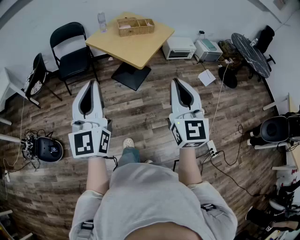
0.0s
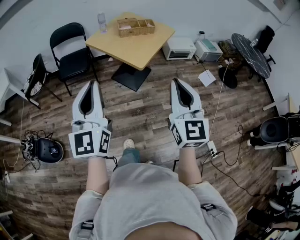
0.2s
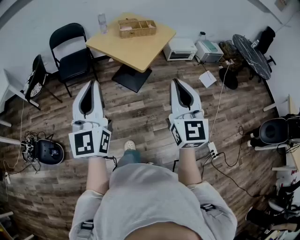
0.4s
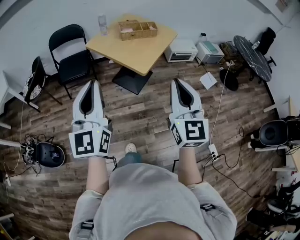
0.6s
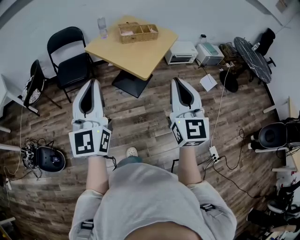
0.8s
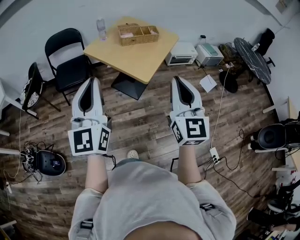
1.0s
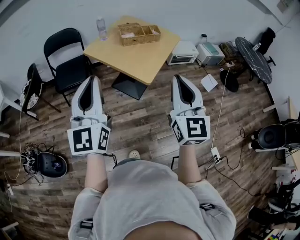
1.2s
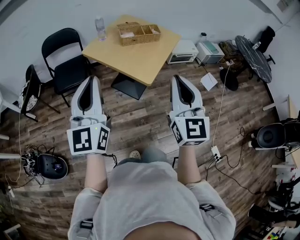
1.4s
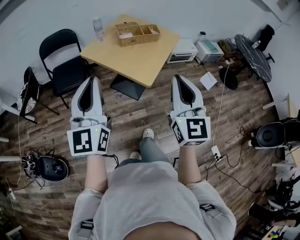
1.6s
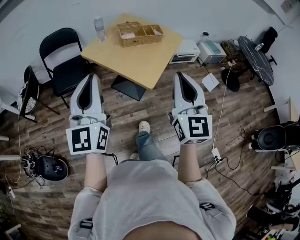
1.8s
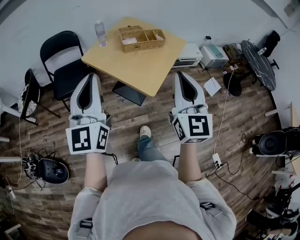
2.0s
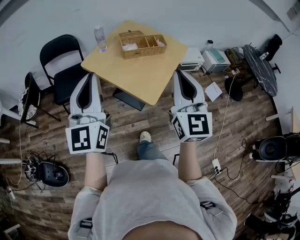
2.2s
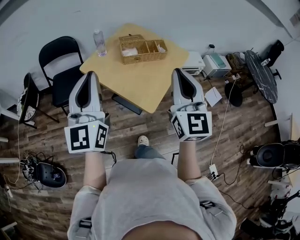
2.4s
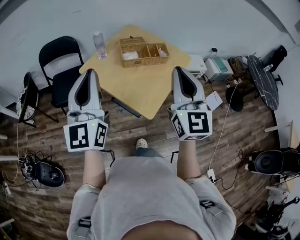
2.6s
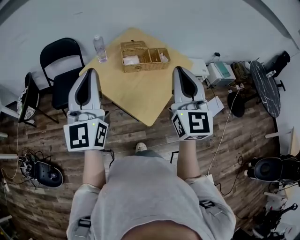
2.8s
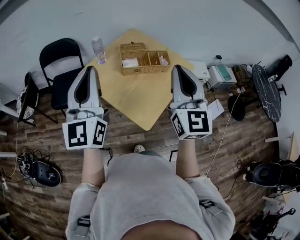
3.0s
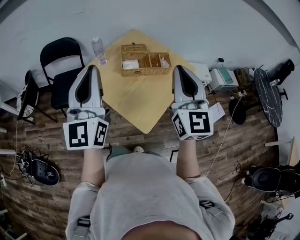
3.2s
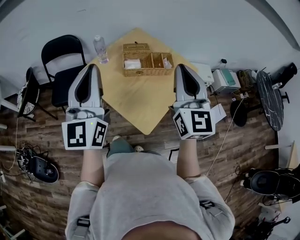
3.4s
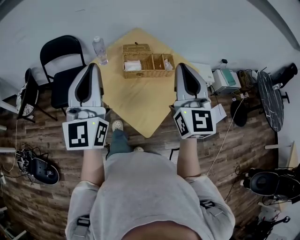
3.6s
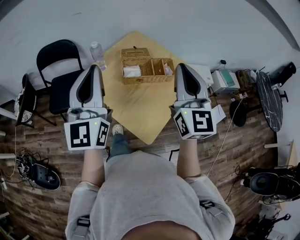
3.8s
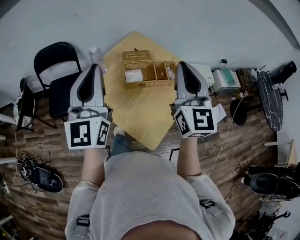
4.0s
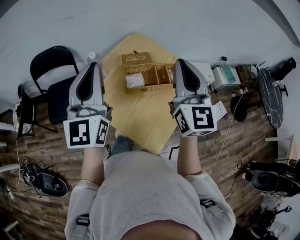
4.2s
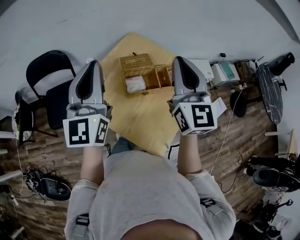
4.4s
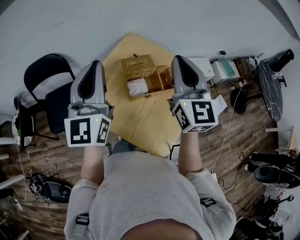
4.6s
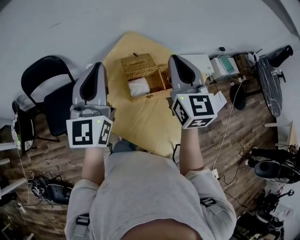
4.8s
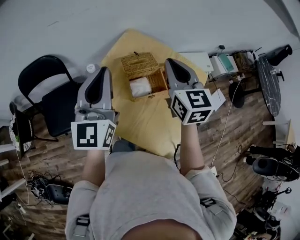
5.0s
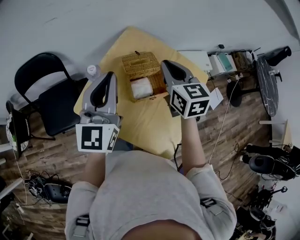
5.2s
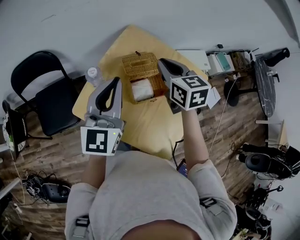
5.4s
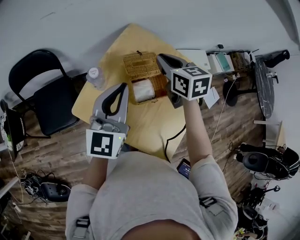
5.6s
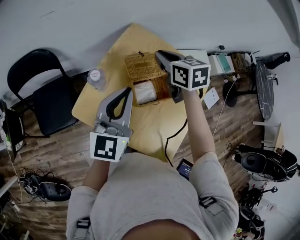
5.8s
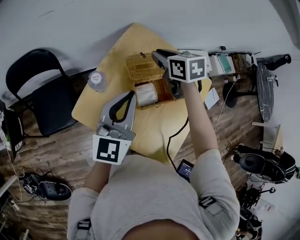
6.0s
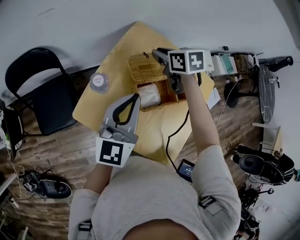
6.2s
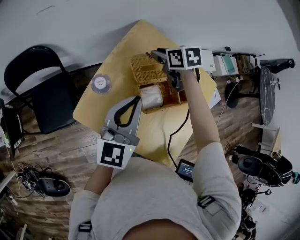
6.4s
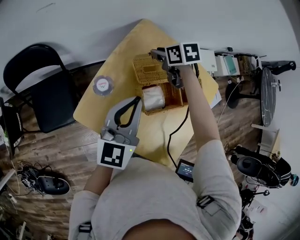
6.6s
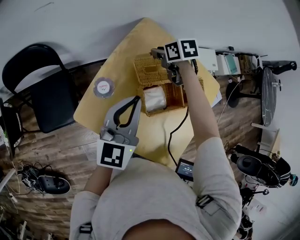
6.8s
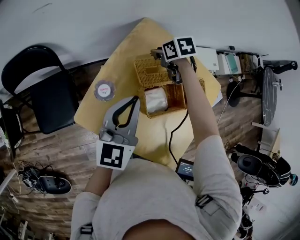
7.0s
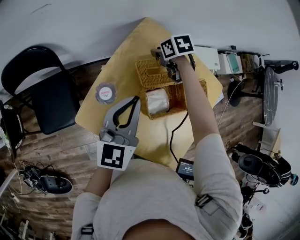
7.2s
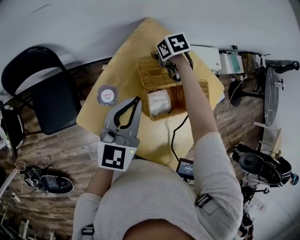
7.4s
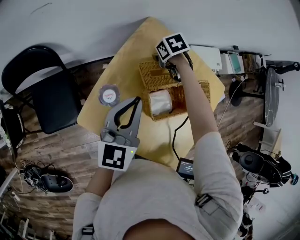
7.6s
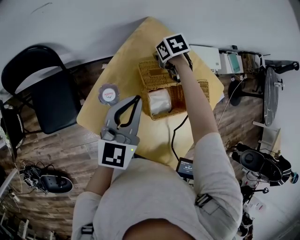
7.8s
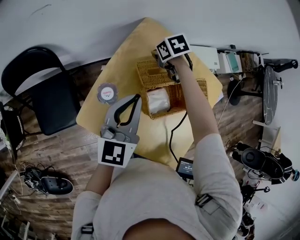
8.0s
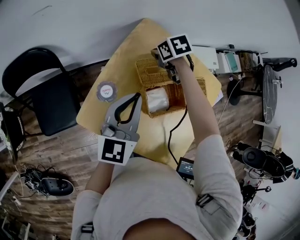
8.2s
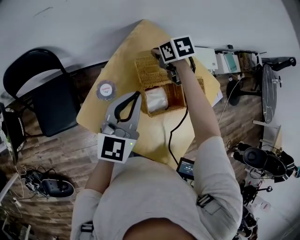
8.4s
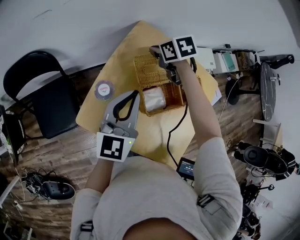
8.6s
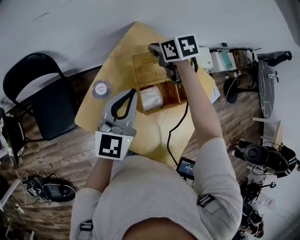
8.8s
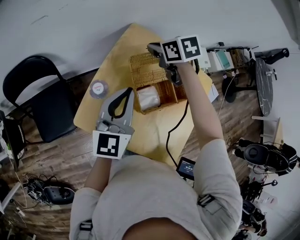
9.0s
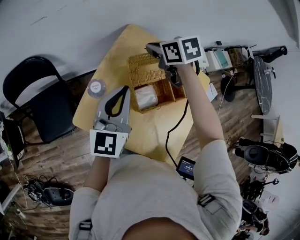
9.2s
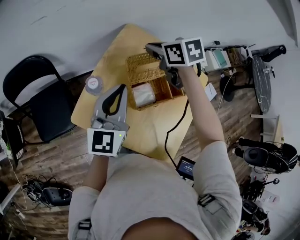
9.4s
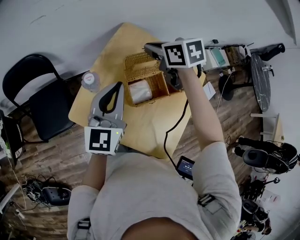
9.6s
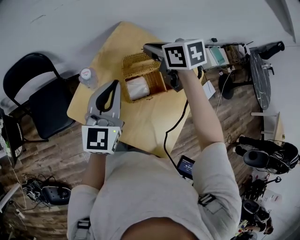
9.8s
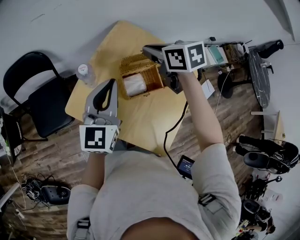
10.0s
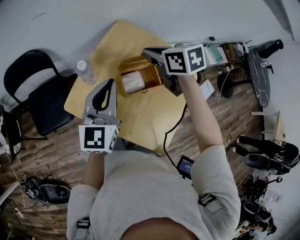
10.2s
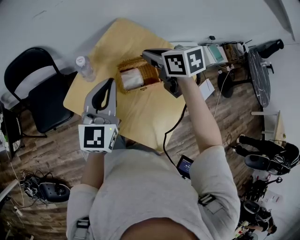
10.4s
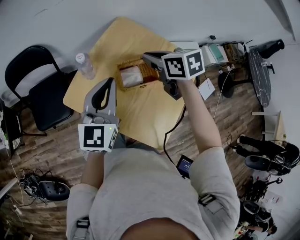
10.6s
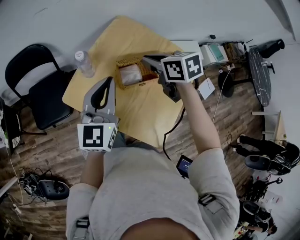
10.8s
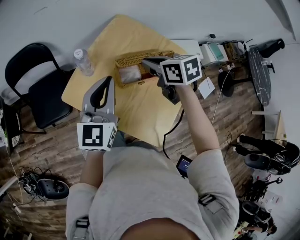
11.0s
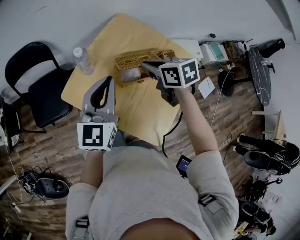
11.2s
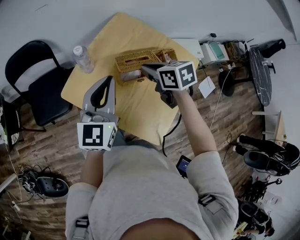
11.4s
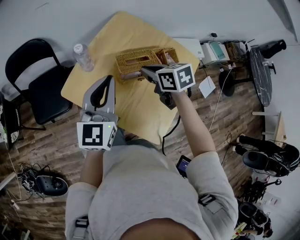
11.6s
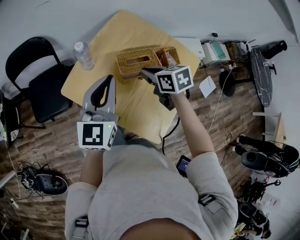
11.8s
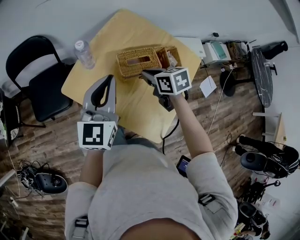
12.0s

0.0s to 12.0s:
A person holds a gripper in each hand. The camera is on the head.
0.0s to 1.6s: The grippers both shift forward by some 20 cm.
1.6s to 3.0s: Both grippers move forward, roughly 30 cm.
3.0s to 4.4s: Both grippers travel together forward, approximately 25 cm.
4.4s to 6.0s: The left gripper travels downward and forward by roughly 15 cm, and turns by some 30 degrees; the right gripper goes some 30 cm forward and downward, and angles its fingers downward, by about 50 degrees.
6.0s to 7.6s: The right gripper travels downward by approximately 20 cm, and angles its fingers downward, by roughly 30 degrees, while the left gripper travels downward by some 5 cm.
7.6s to 9.0s: The right gripper goes approximately 15 cm upward, and changes its angle by roughly 30 degrees.
9.0s to 10.4s: The left gripper heads backward, covering approximately 10 cm. Meanwhile the right gripper moves backward, about 15 cm.
10.4s to 12.0s: The right gripper shifts approximately 15 cm downward and backward.

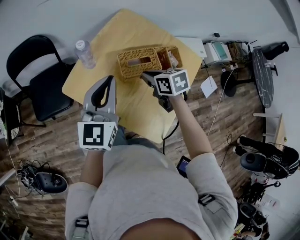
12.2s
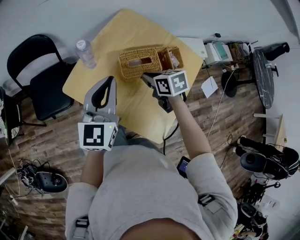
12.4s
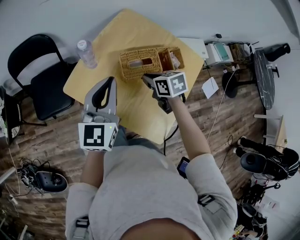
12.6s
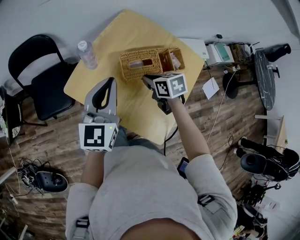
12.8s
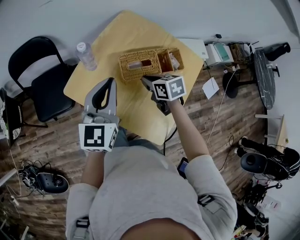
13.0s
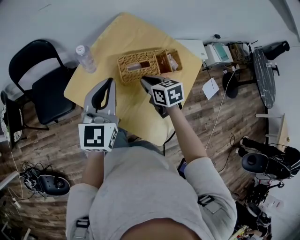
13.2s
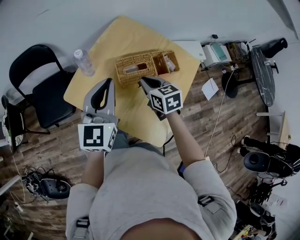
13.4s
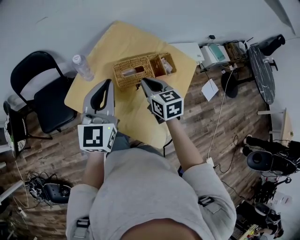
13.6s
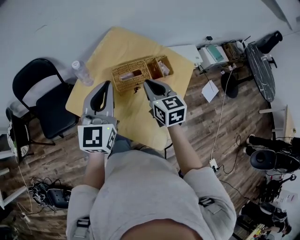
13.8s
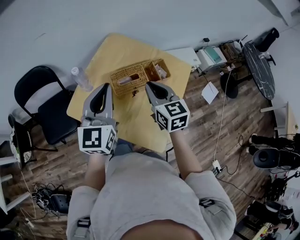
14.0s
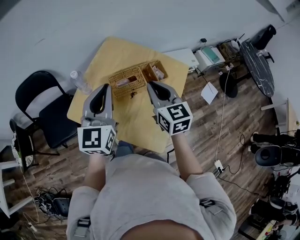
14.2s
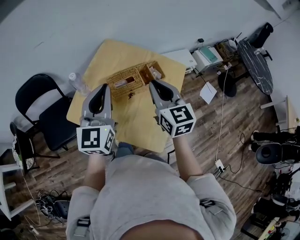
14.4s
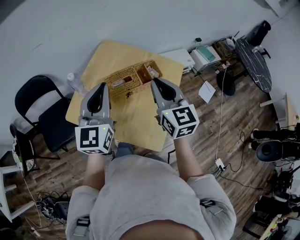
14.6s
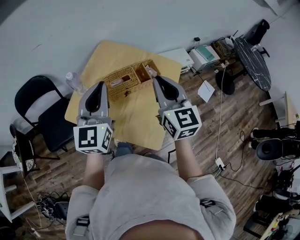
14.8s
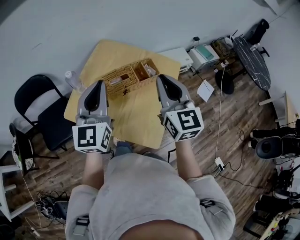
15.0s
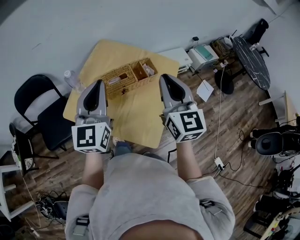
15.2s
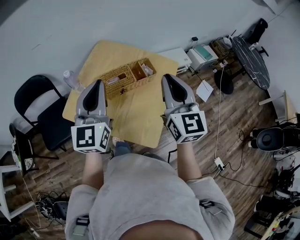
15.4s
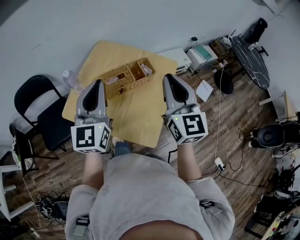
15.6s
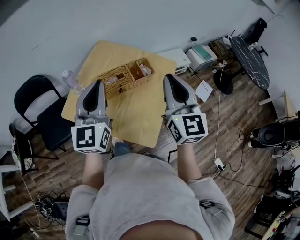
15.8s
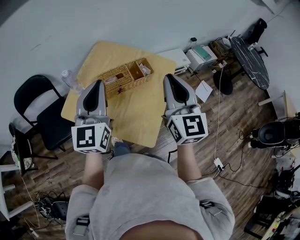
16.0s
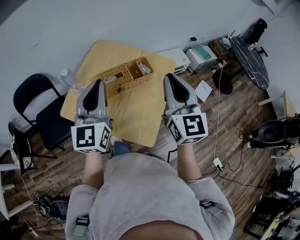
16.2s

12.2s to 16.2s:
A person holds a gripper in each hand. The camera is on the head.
12.2s to 13.6s: The right gripper is displaced upward by some 5 cm, and rotates about 20 degrees.
13.6s to 14.8s: The right gripper is displaced upward, to the right and backward by about 20 cm, and swivels roughly 30 degrees. The left gripper shifts roughly 5 cm upward.
14.8s to 16.2s: The right gripper heads to the right, covering roughly 5 cm.

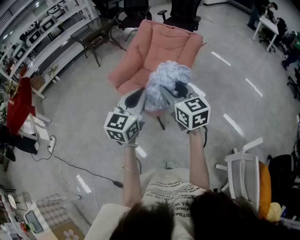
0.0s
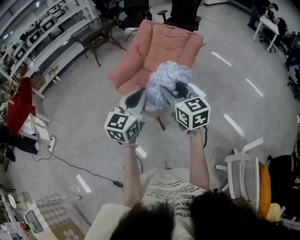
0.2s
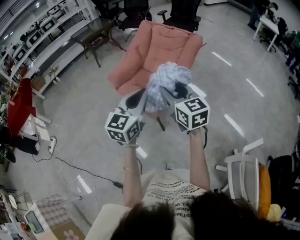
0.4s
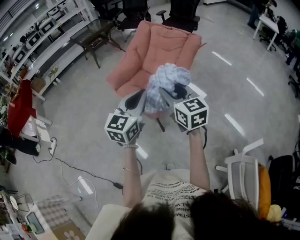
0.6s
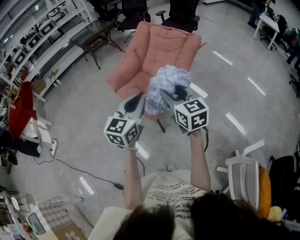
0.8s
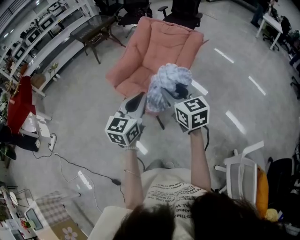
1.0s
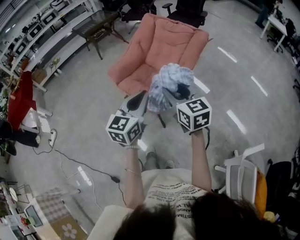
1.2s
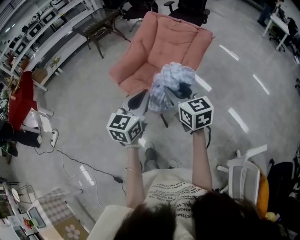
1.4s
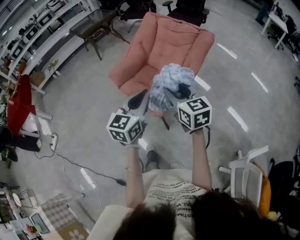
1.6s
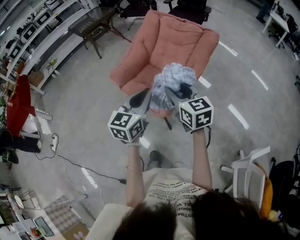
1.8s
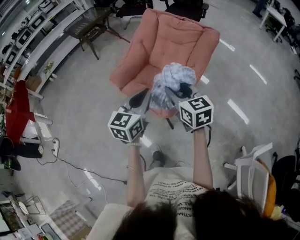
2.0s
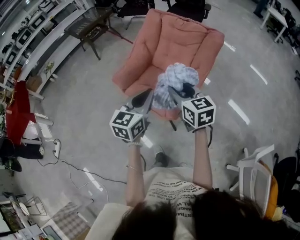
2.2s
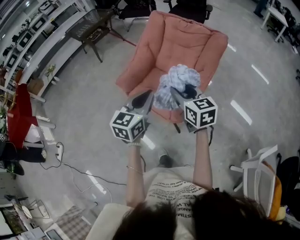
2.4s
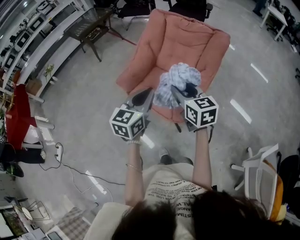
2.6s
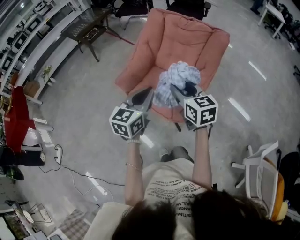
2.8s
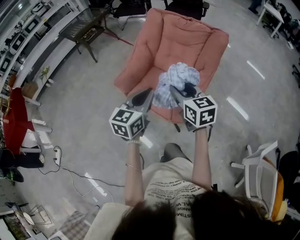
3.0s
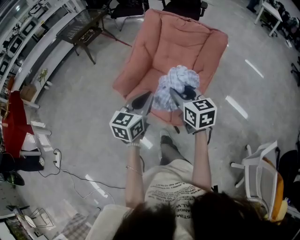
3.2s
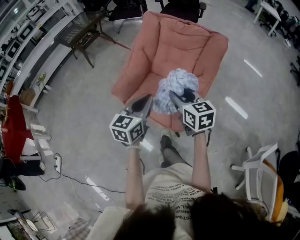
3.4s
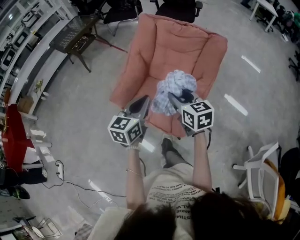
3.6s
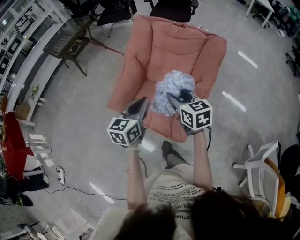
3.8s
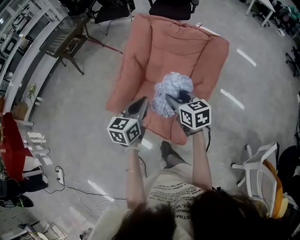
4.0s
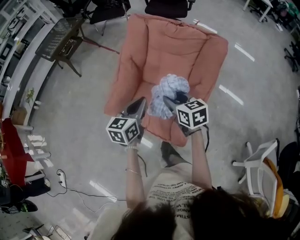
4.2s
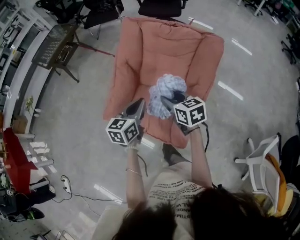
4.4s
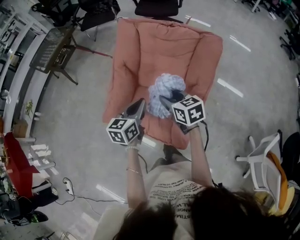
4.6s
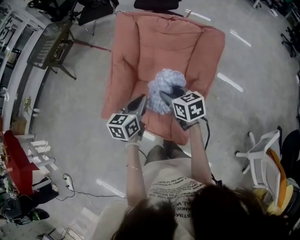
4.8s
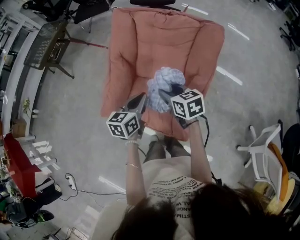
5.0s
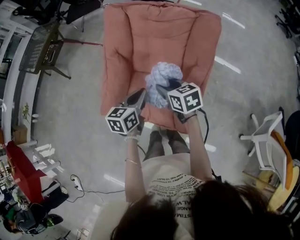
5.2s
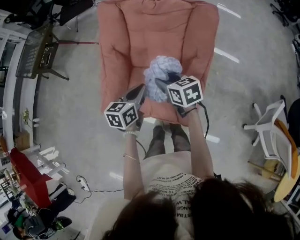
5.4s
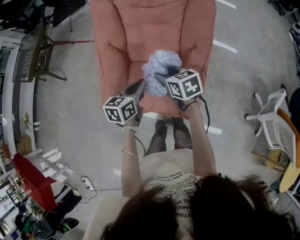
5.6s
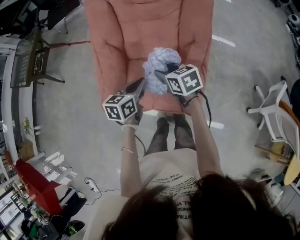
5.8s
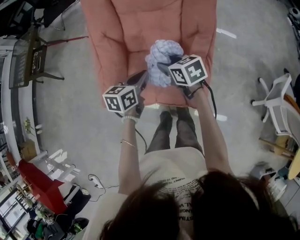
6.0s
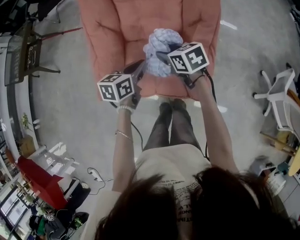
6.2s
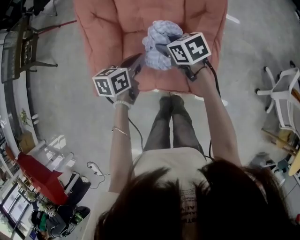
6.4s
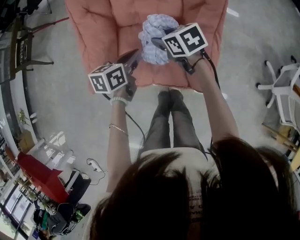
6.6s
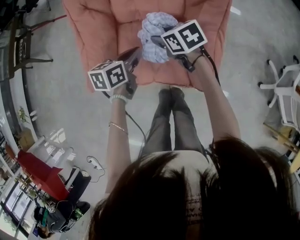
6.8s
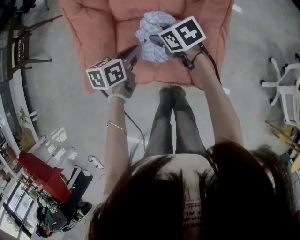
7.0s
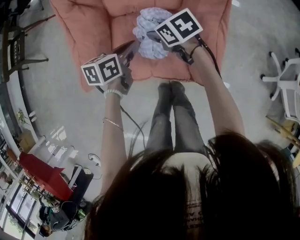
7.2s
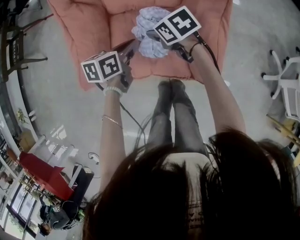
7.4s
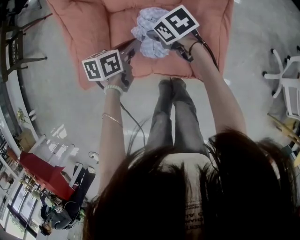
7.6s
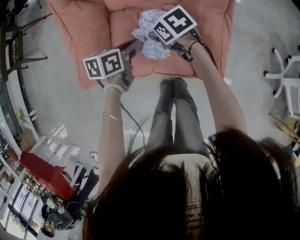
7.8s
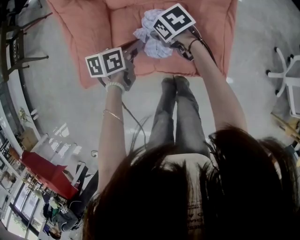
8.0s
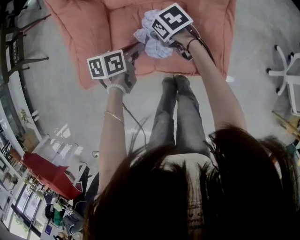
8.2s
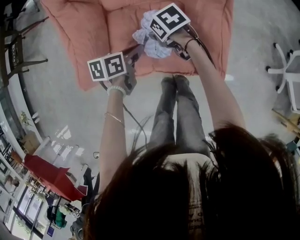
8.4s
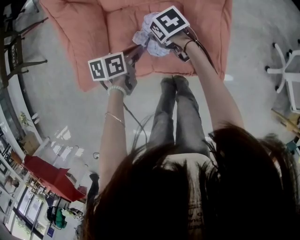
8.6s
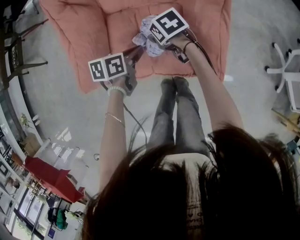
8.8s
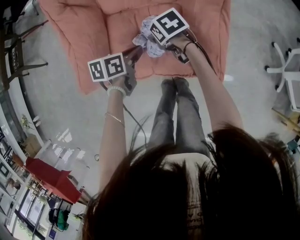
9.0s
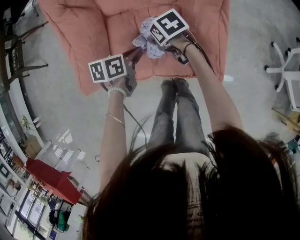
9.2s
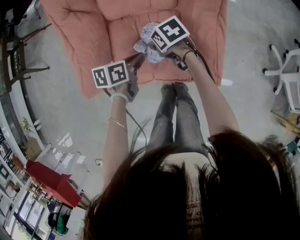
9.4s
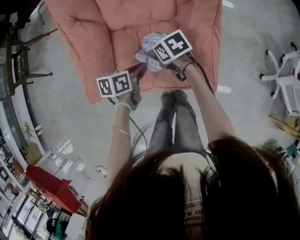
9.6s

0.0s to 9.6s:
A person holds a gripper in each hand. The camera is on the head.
0.0s to 1.6s: The left gripper travels forward by approximately 10 cm; the right gripper moves forward and downward, roughly 15 cm.
1.6s to 3.2s: Both grippers move forward, to the left and downward, about 20 cm.
3.2s to 4.8s: The left gripper heads forward, covering roughly 25 cm. Meanwhile the right gripper goes roughly 25 cm forward and downward.
4.8s to 6.4s: Both grippers move downward, some 20 cm. The left gripper rotates approximately 30 degrees.
6.4s to 8.0s: Both grippers move downward, approximately 15 cm.
8.0s to 9.6s: The grippers stay close to where they were, moving slightly.
